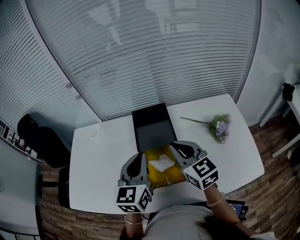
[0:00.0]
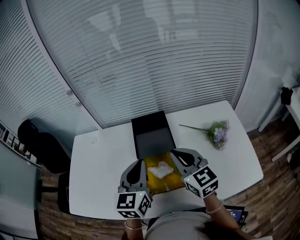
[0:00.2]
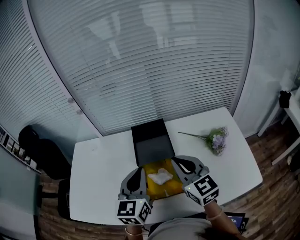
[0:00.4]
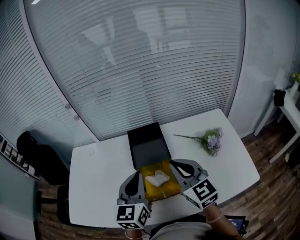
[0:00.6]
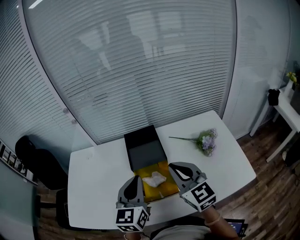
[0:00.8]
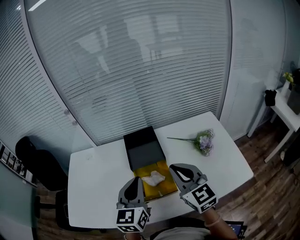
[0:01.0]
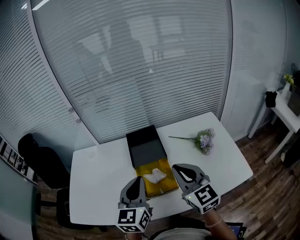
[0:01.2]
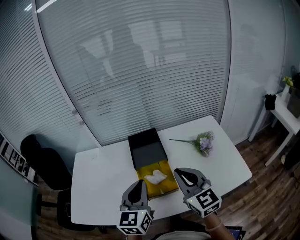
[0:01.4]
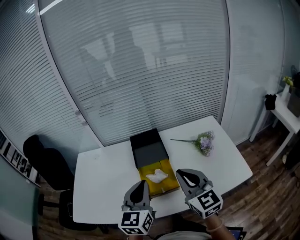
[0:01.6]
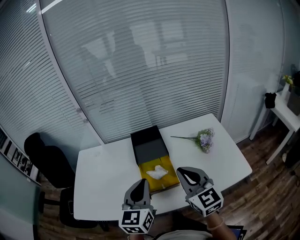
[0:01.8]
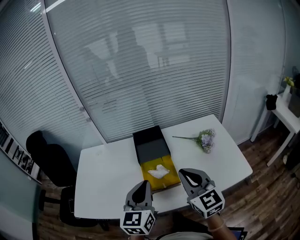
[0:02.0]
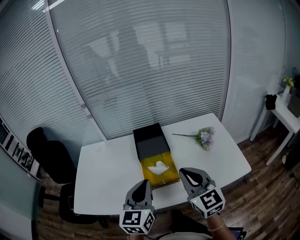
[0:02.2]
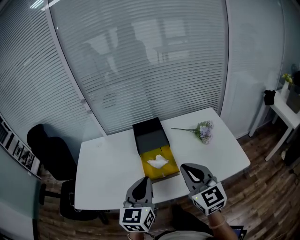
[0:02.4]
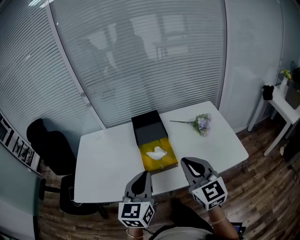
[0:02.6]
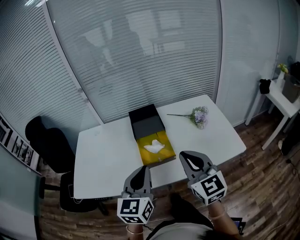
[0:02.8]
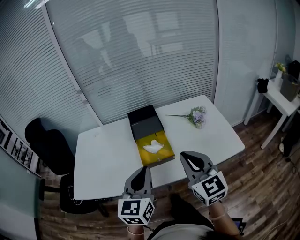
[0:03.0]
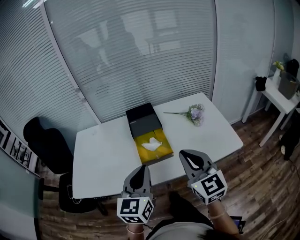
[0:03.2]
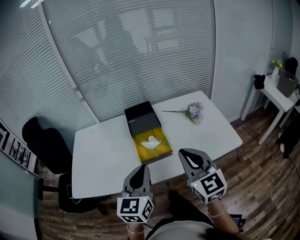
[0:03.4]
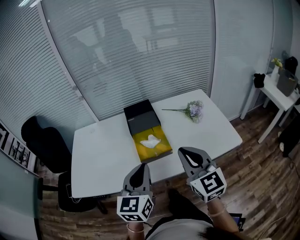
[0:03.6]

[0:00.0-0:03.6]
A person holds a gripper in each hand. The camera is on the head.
0:00.0 to 0:01.8: The right gripper moves backward and upward, some 20 cm, while the left gripper moves backward, about 15 cm.
0:01.8 to 0:03.6: The two grippers go some 10 cm backward.

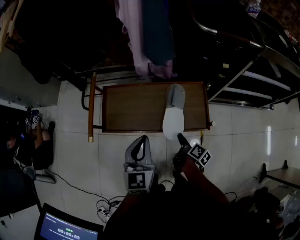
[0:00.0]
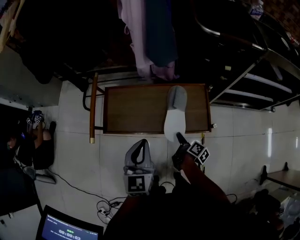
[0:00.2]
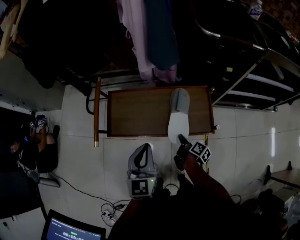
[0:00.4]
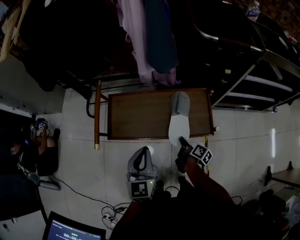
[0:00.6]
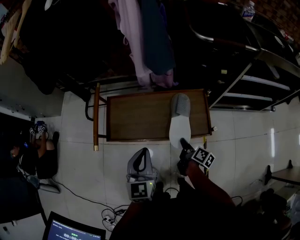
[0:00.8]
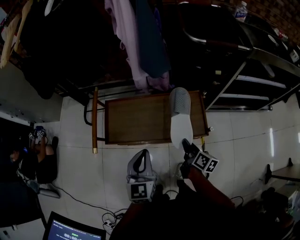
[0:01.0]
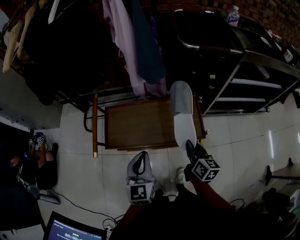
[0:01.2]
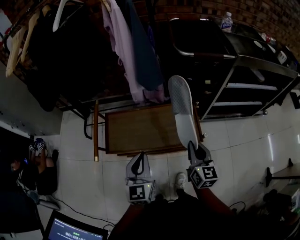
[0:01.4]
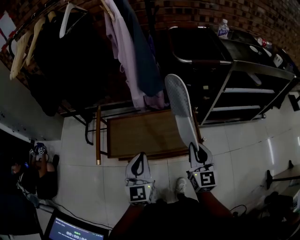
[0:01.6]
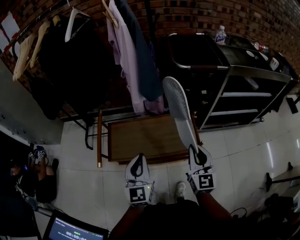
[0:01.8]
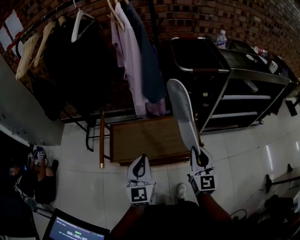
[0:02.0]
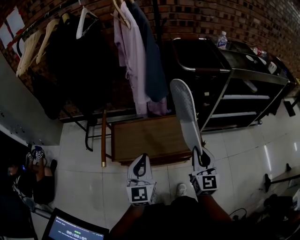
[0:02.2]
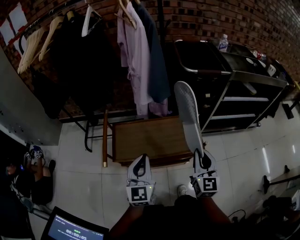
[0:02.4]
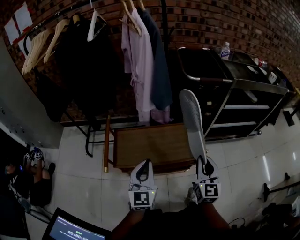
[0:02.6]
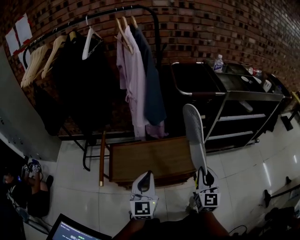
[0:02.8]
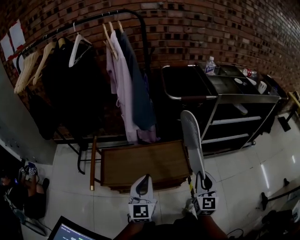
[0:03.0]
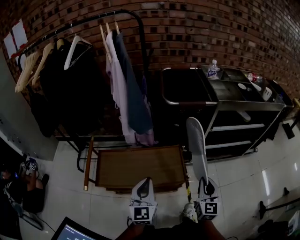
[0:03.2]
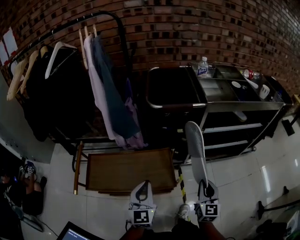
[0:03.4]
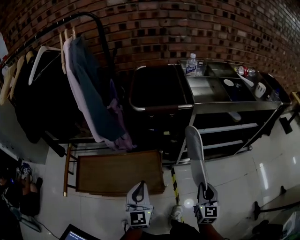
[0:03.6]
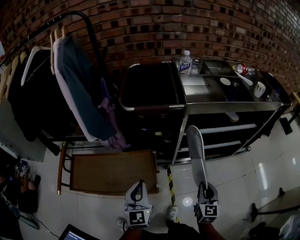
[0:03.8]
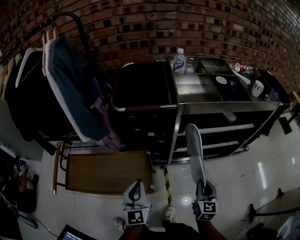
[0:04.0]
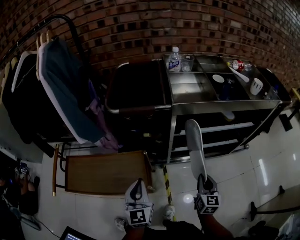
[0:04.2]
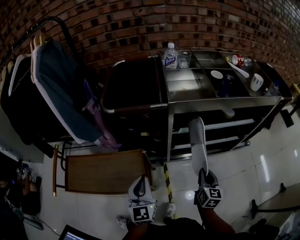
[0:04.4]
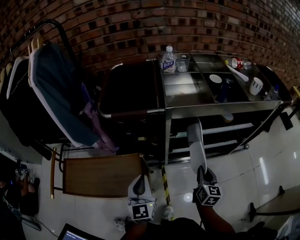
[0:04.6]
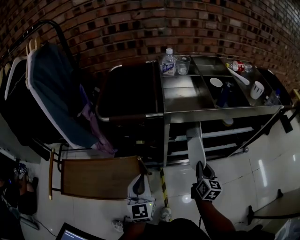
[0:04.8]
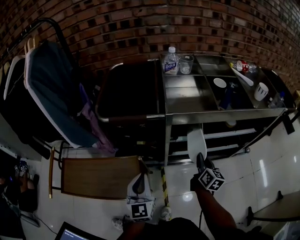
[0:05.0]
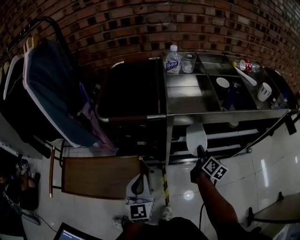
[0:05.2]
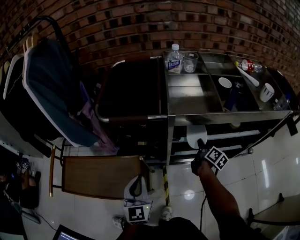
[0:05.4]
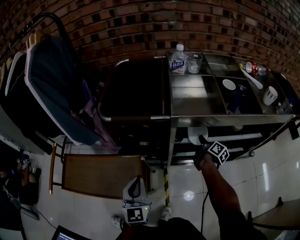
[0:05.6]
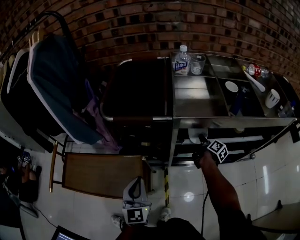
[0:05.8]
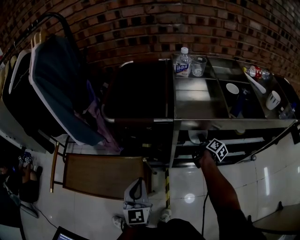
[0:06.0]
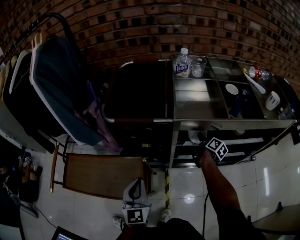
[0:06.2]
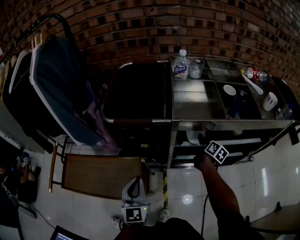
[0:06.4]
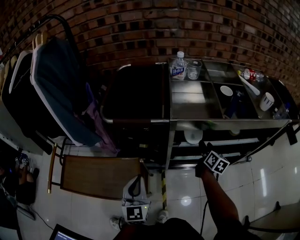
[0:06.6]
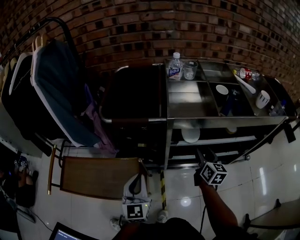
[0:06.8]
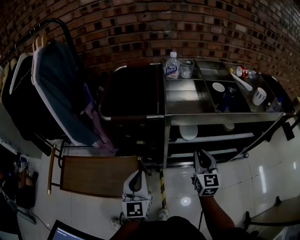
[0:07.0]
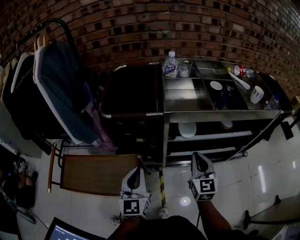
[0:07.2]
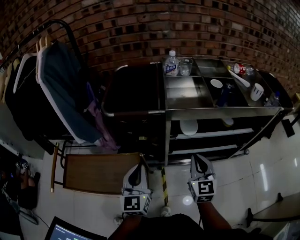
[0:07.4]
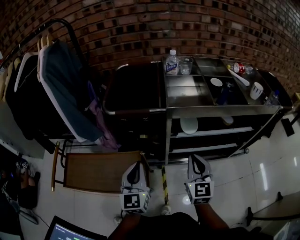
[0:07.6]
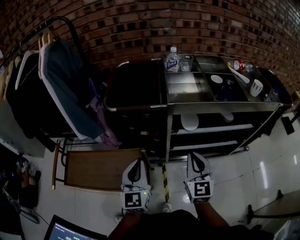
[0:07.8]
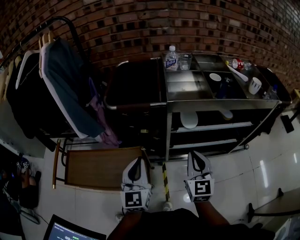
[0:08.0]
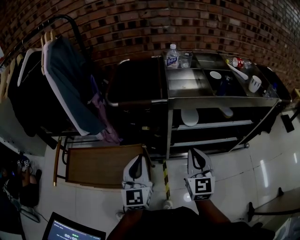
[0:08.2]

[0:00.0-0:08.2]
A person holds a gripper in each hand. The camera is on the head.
0:00.0 to 0:01.6: The right gripper shifts about 30 cm upward, rotates around the line of its fingers by roughly 70 degrees, counterclockwise from behind, and closes. Meanwhile the left gripper moves upward, some 5 cm.
0:01.6 to 0:03.2: Both grippers move to the right, about 10 cm.
0:03.2 to 0:05.0: Both grippers travel together to the right and forward, roughly 35 cm. The right gripper swivels roughly 30 degrees.
0:05.0 to 0:06.6: The right gripper shifts approximately 10 cm forward, and opens up.
0:06.6 to 0:08.2: The left gripper is displaced upward by approximately 10 cm; the right gripper heads backward, upward and to the left, covering some 30 cm, twists approximately 40 degrees counterclockwise, seen from behind, and closes its fingers.

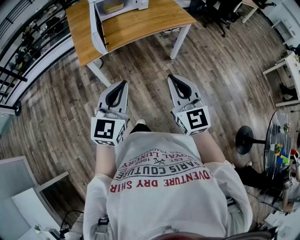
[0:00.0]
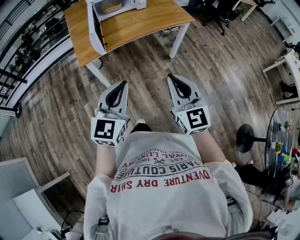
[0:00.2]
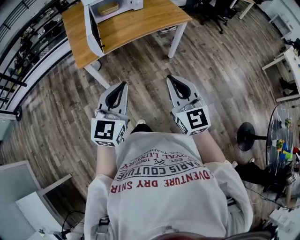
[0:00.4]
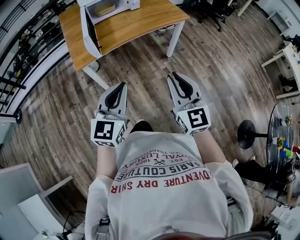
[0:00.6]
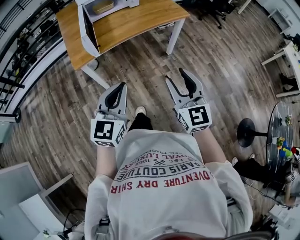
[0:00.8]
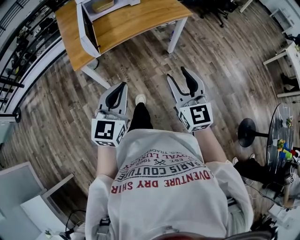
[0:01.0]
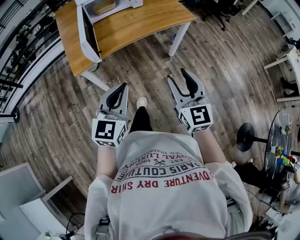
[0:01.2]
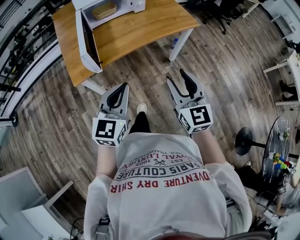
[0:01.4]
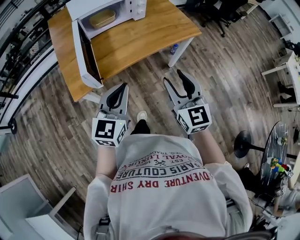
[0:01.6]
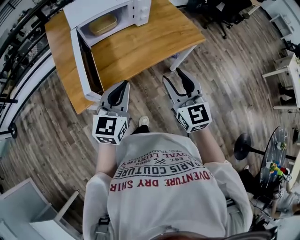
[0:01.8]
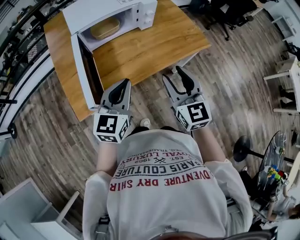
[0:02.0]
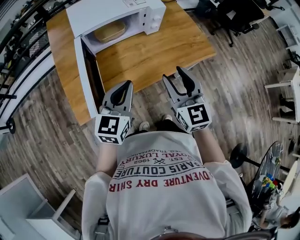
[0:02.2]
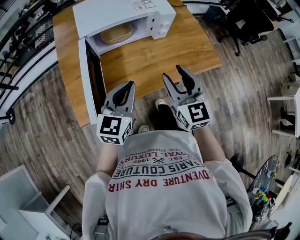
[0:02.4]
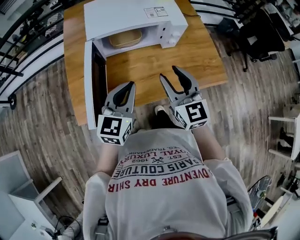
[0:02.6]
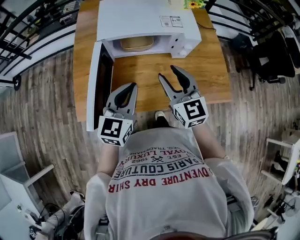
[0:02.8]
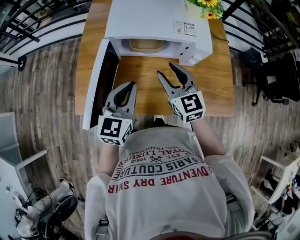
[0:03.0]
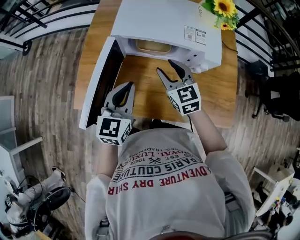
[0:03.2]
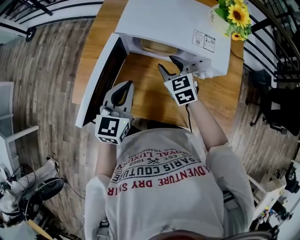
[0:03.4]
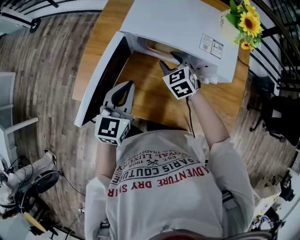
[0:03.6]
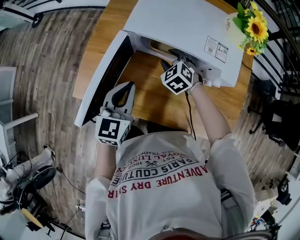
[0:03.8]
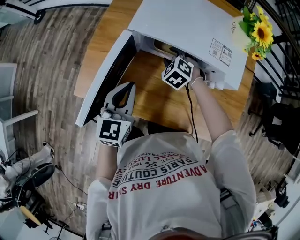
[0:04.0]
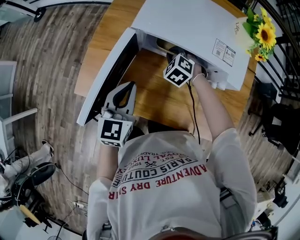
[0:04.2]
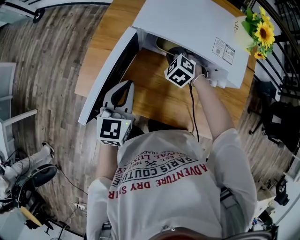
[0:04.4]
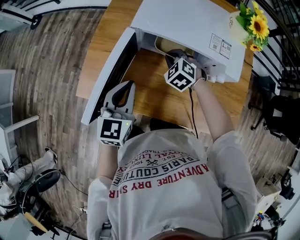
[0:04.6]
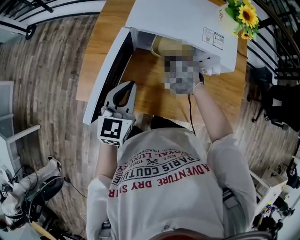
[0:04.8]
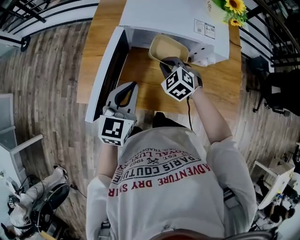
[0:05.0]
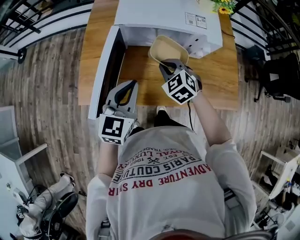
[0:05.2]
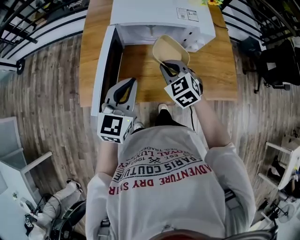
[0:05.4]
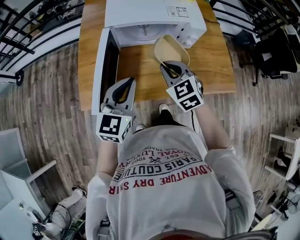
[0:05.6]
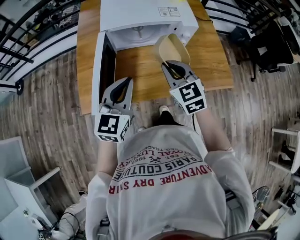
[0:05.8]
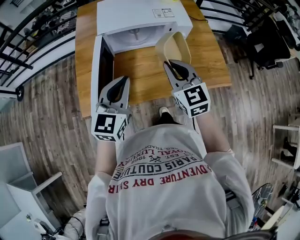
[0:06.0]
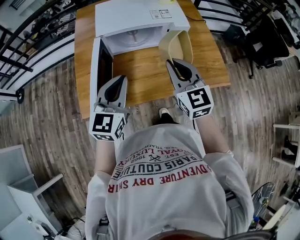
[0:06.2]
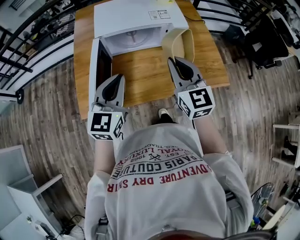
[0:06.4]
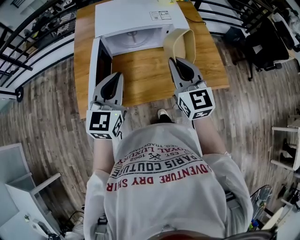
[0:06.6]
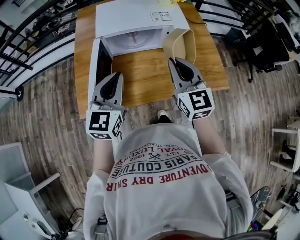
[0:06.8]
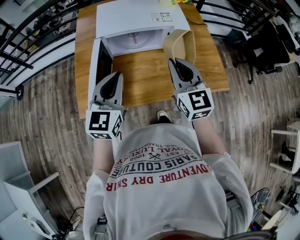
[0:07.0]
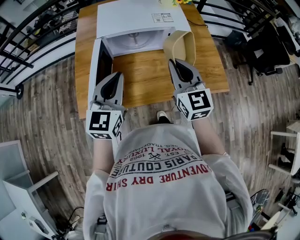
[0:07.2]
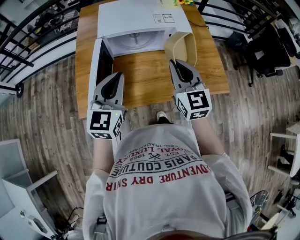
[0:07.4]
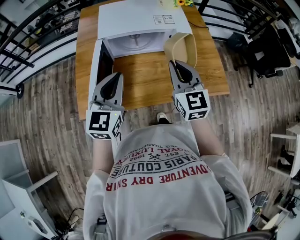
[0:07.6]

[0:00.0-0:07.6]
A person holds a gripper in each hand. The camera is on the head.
0:00.0 to 0:01.6: The two grippers go some 25 cm forward. The right gripper opens up.
0:01.6 to 0:03.0: The right gripper moves roughly 40 cm, and rotates roughly 40 degrees; the left gripper moves some 30 cm, and rotates about 30 degrees.
0:03.0 to 0:04.6: The right gripper is displaced downward and forward by roughly 20 cm, tips its fingers downward by about 40 degrees, and closes, while the left gripper travels to the left by roughly 5 cm.
0:04.6 to 0:06.0: The left gripper moves backward and upward, some 10 cm, and turns by roughly 30 degrees. Meanwhile the right gripper moves backward and upward, approximately 30 cm, and tips its fingers upward by roughly 40 degrees.
0:06.0 to 0:07.6: The grippers make only small movements.

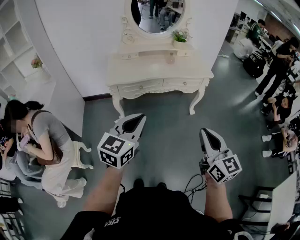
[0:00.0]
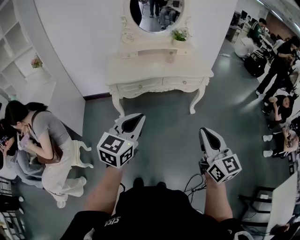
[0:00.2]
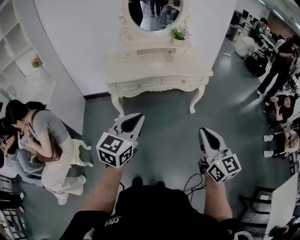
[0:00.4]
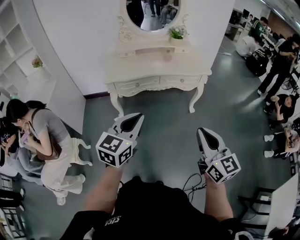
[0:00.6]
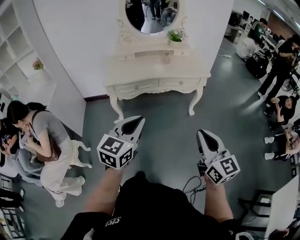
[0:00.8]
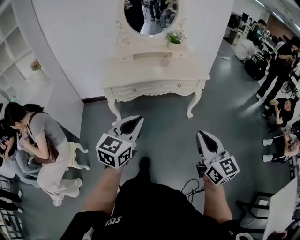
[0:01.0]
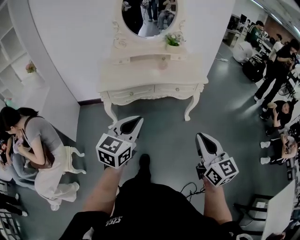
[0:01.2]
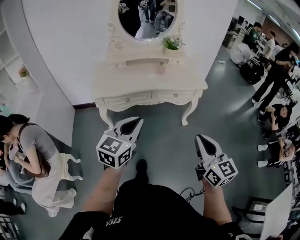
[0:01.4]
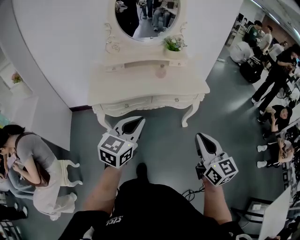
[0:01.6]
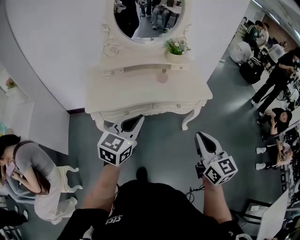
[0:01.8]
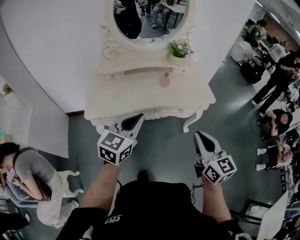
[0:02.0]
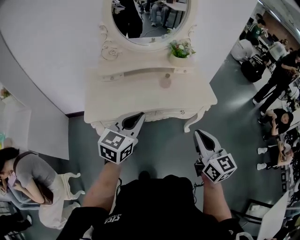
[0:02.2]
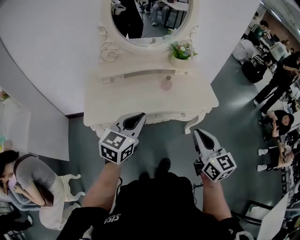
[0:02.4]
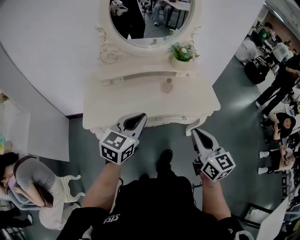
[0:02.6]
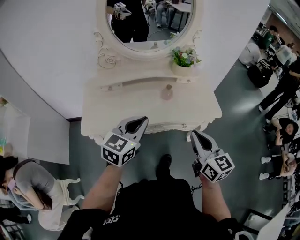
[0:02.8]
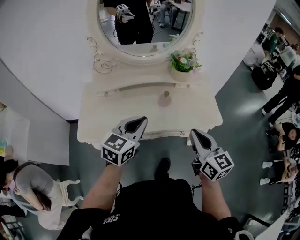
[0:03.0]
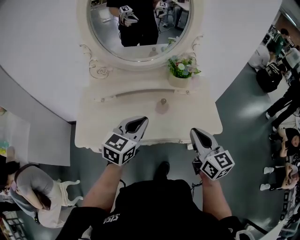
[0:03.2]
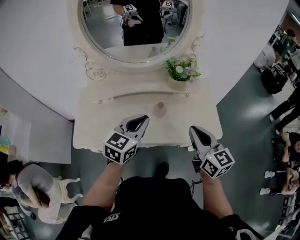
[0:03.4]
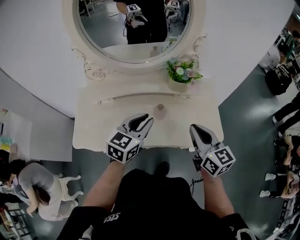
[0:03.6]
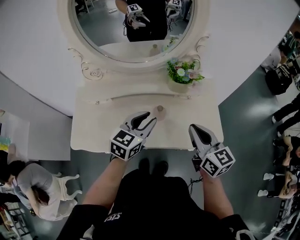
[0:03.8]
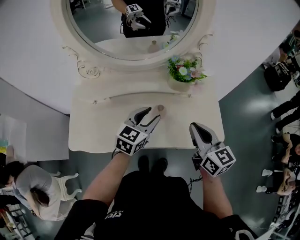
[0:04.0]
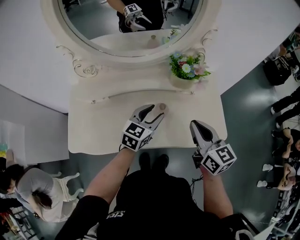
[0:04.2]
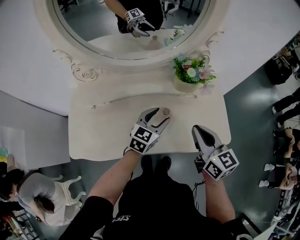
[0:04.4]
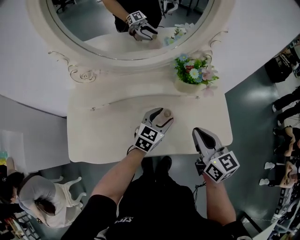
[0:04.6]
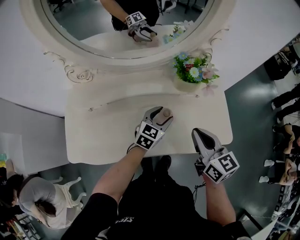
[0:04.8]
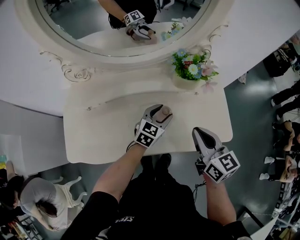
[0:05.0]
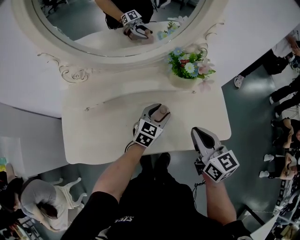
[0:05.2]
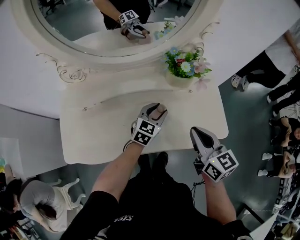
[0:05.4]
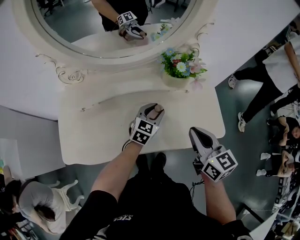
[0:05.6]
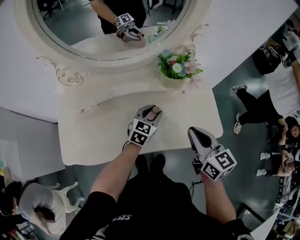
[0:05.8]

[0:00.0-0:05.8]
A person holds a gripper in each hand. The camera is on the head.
0:00.0 to 0:01.4: The grippers both shift forward and to the right by about 15 cm.
0:01.4 to 0:02.8: Both grippers move forward, some 35 cm.
0:02.8 to 0:04.4: The right gripper is displaced forward by roughly 25 cm, while the left gripper shifts roughly 35 cm forward, downward and to the right, and opens up.
0:04.4 to 0:05.8: The left gripper ends up roughly 5 cm from where it was.
